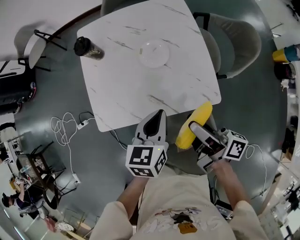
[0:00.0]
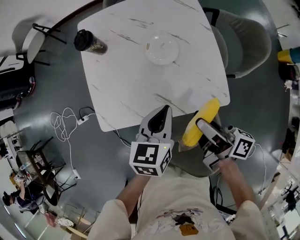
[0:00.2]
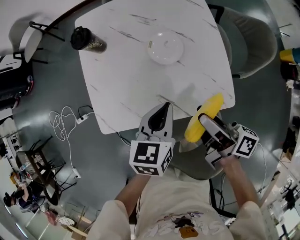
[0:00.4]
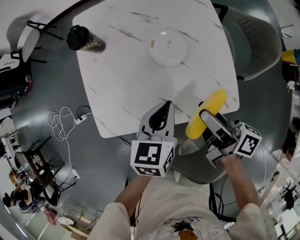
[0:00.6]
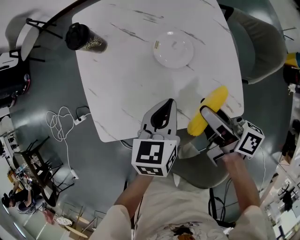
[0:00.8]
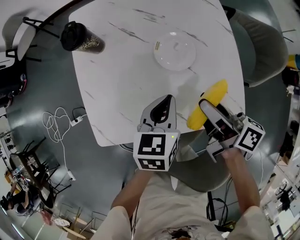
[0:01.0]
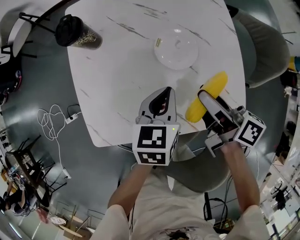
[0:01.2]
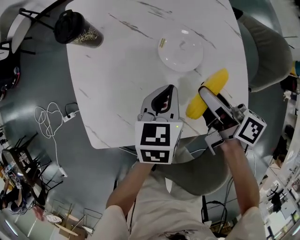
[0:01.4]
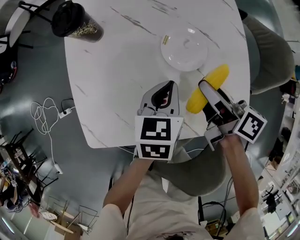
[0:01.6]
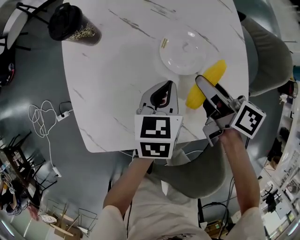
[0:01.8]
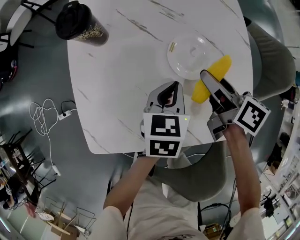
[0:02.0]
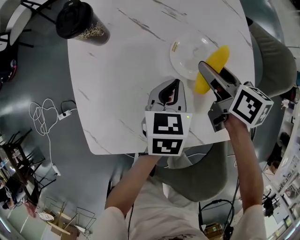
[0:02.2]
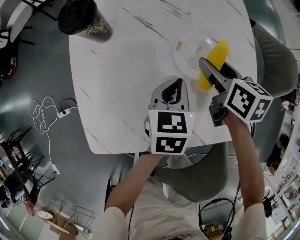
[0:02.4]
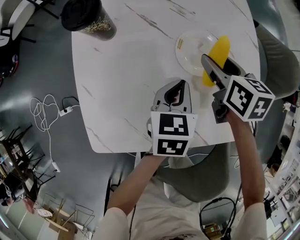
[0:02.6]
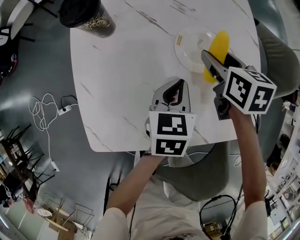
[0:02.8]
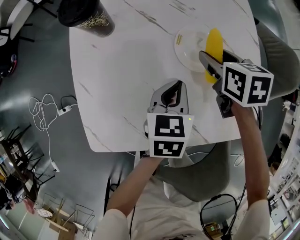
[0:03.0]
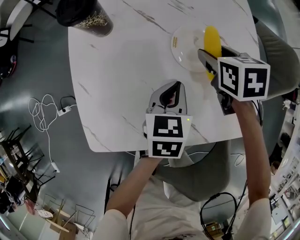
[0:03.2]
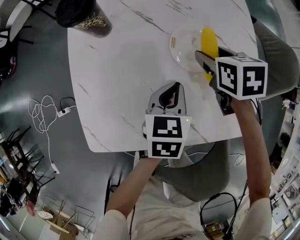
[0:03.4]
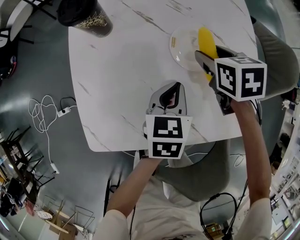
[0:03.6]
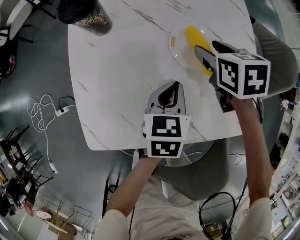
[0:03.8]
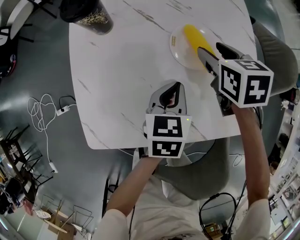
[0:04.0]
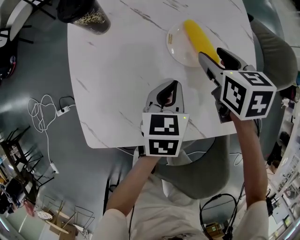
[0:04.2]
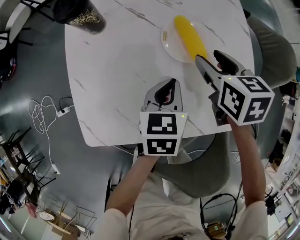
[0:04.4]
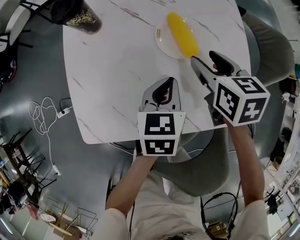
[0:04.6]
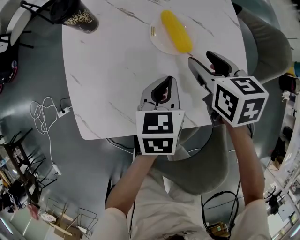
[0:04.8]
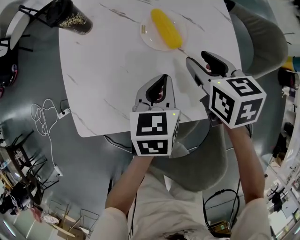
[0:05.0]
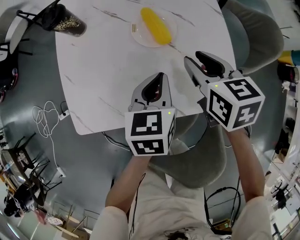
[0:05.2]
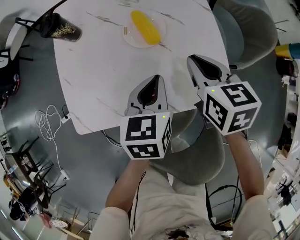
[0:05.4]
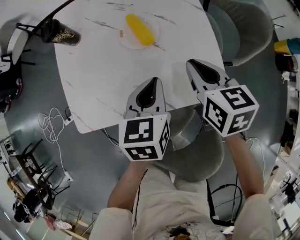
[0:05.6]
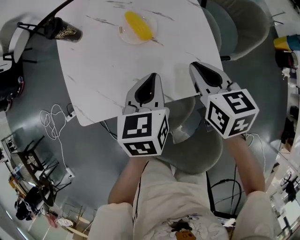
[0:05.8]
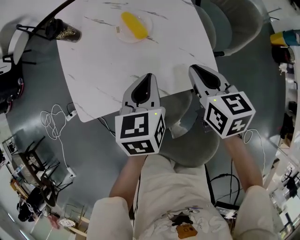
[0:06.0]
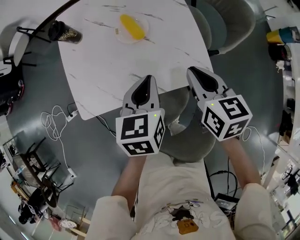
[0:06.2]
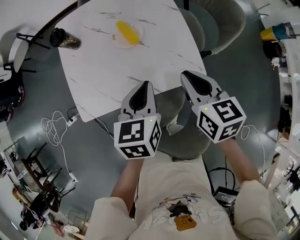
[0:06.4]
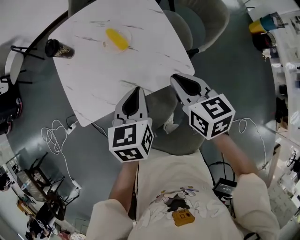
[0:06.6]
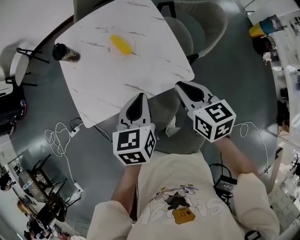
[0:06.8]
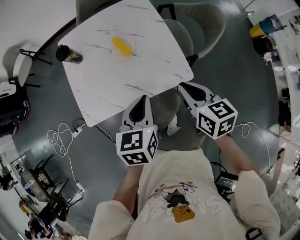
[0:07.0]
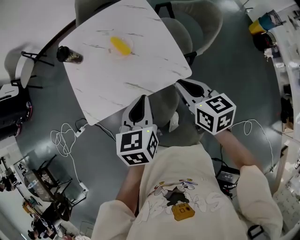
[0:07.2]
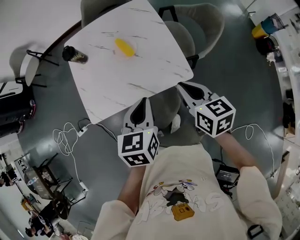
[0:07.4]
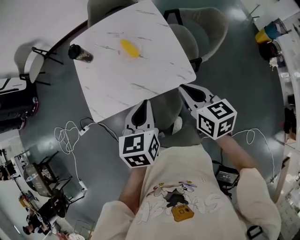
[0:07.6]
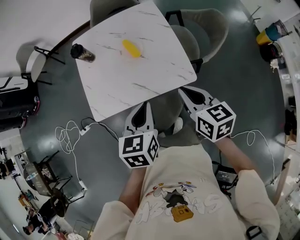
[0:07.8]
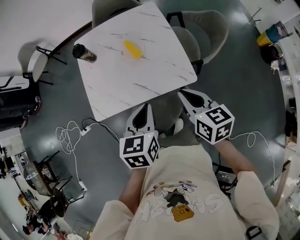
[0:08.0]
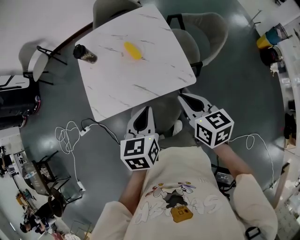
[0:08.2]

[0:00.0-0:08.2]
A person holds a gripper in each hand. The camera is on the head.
0.0 to 1.6 s: The right gripper heads forward and downward, covering some 25 cm, and changes its angle by roughly 20 degrees. Meanwhile the left gripper is displaced downward and forward by some 25 cm.
1.6 to 3.2 s: The right gripper shifts approximately 10 cm forward and downward, and angles its fingers downward, by approximately 40 degrees.
3.2 to 5.0 s: The right gripper heads backward and upward, covering approximately 10 cm; the left gripper shifts by about 5 cm.
5.0 to 6.6 s: The right gripper moves backward, upward and to the right, about 25 cm, and closes up. Meanwhile the left gripper goes approximately 20 cm upward and backward.
6.6 to 8.2 s: The two grippers go roughly 10 cm backward and upward.

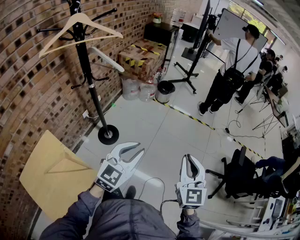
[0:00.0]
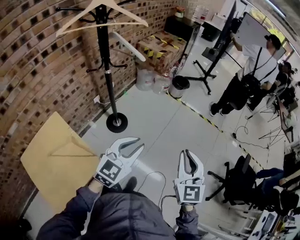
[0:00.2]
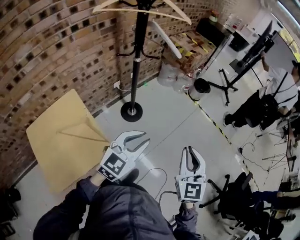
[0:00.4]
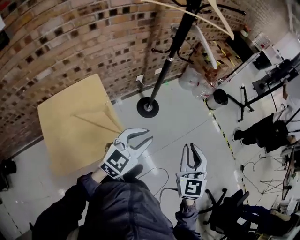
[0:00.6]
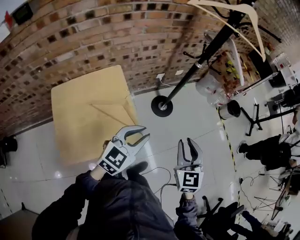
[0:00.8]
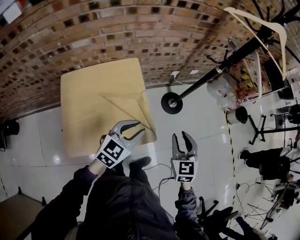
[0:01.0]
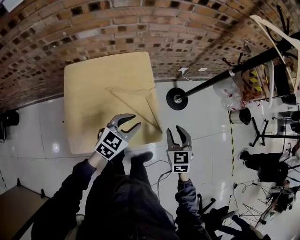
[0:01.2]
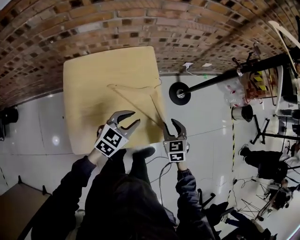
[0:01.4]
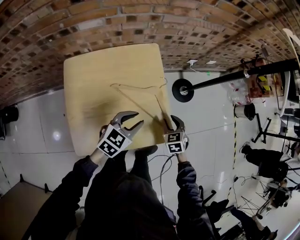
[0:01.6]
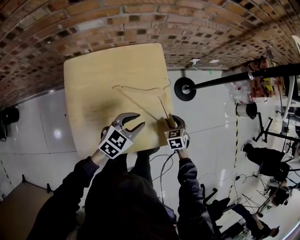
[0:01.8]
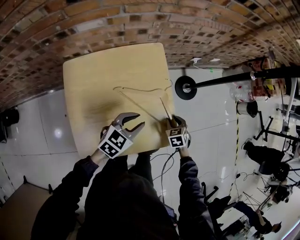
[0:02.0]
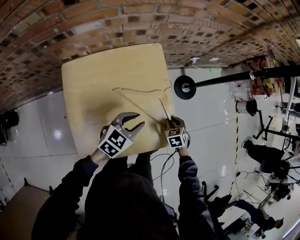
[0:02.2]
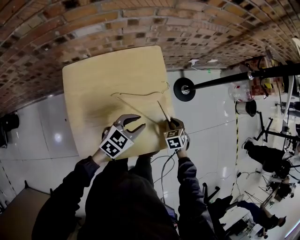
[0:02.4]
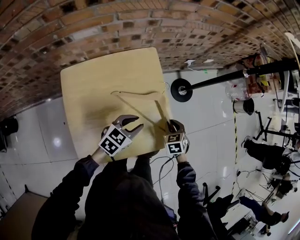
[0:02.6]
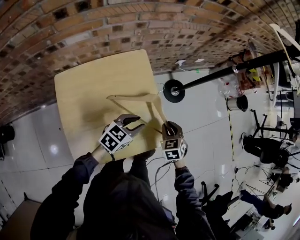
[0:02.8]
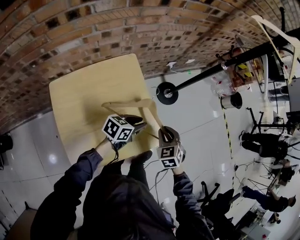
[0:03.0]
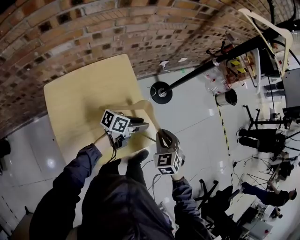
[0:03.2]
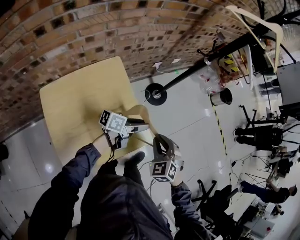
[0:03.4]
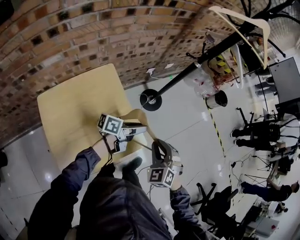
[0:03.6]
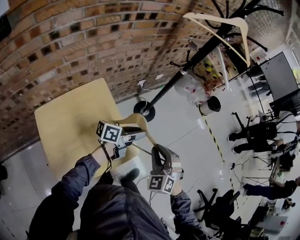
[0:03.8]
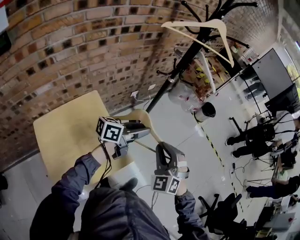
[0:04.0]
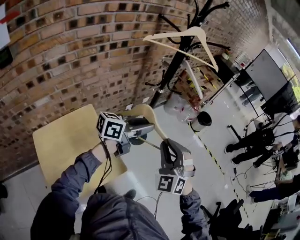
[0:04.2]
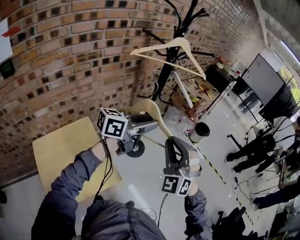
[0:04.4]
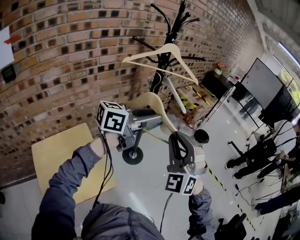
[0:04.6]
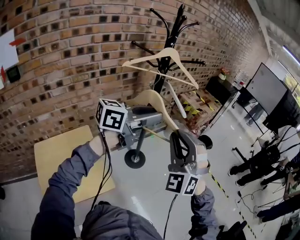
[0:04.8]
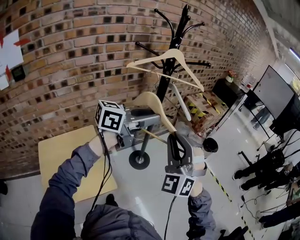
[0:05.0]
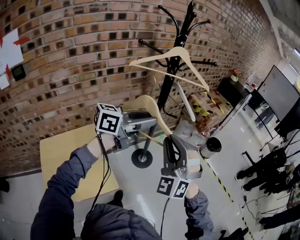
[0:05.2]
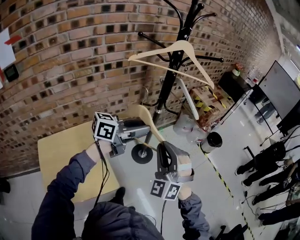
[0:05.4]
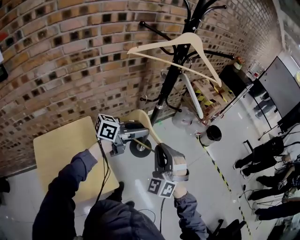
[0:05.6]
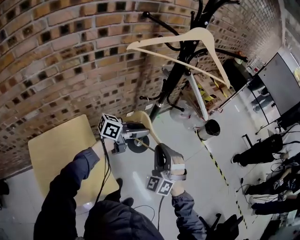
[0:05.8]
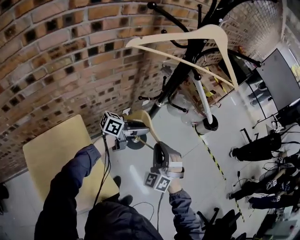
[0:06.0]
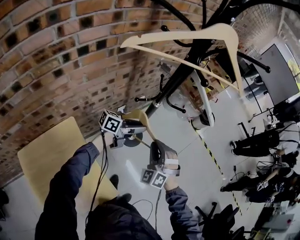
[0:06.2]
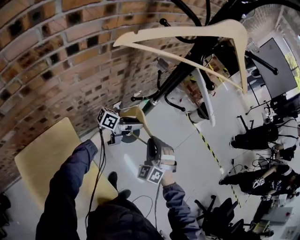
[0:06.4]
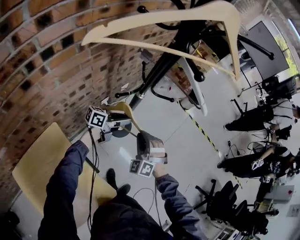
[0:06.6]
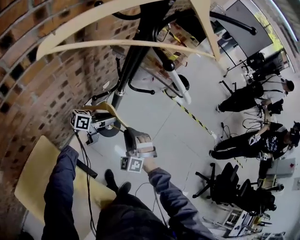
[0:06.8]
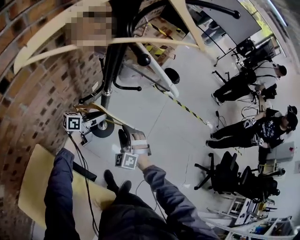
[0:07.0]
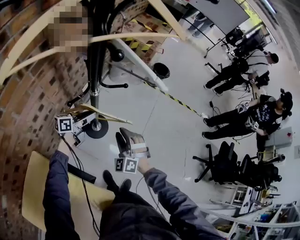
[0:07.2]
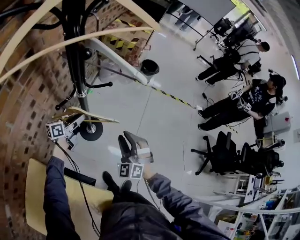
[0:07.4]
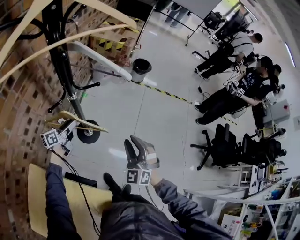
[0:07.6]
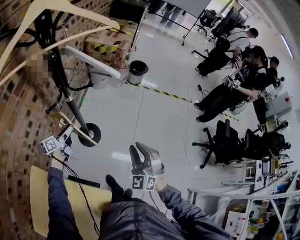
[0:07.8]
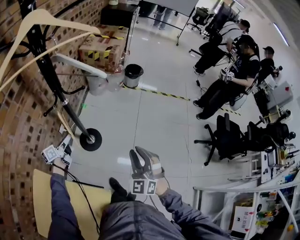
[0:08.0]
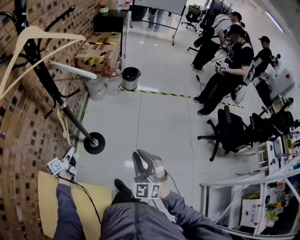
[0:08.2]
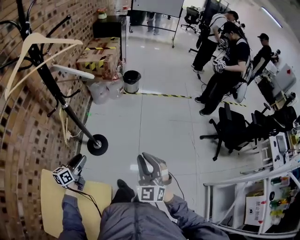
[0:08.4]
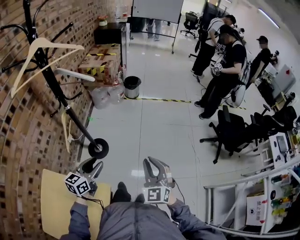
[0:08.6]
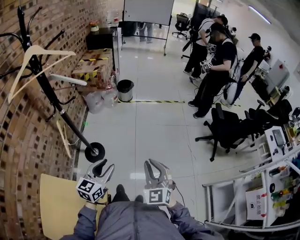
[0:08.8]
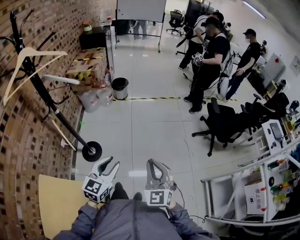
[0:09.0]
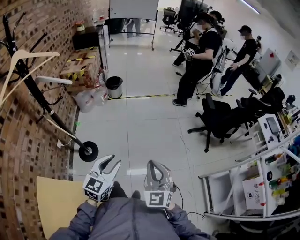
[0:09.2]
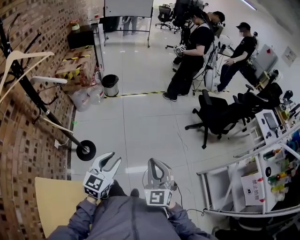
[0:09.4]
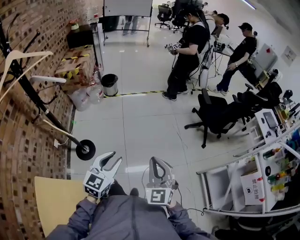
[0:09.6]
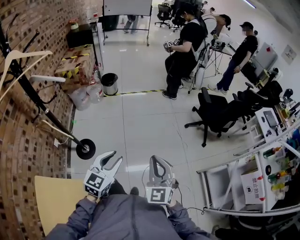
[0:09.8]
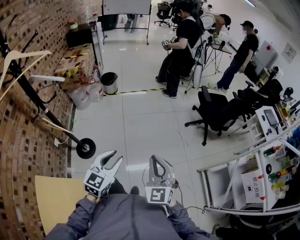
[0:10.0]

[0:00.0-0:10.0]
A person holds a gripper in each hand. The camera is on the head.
0.0 to 1.4 s: Both grippers are carried roughly 50 cm. The left gripper changes its angle by roughly 50 degrees; the right gripper tilts its fingers about 30 degrees downward, and opens.
1.4 to 2.8 s: The left gripper shifts by some 5 cm. The right gripper moves about 15 cm downward and comes back.
2.8 to 4.2 s: The right gripper goes roughly 40 cm upward and to the right, and tilts its fingers approximately 40 degrees upward, while the left gripper travels upward, forward and to the right by some 40 cm, and angles its fingers upward, by approximately 30 degrees.
4.2 to 5.8 s: The grippers both shift forward and downward by about 20 cm.
5.8 to 7.2 s: The left gripper moves downward, forward and to the left, about 25 cm. Meanwhile the right gripper is displaced downward and forward by approximately 20 cm, and rotates about 30 degrees.
7.2 to 8.6 s: Both grippers travel together to the right, backward and upward, roughly 40 cm. The right gripper swivels some 40 degrees, and closes up; the left gripper rotates roughly 40 degrees, and opens its fingers.
8.6 to 10.0 s: Both grippers move to the right, roughly 20 cm. The left gripper changes its angle by approximately 30 degrees.

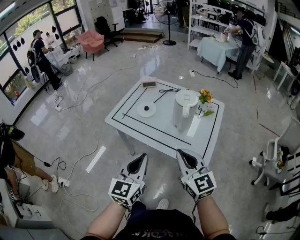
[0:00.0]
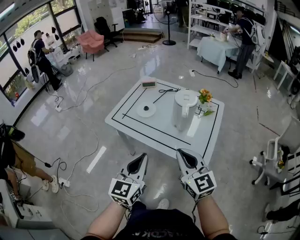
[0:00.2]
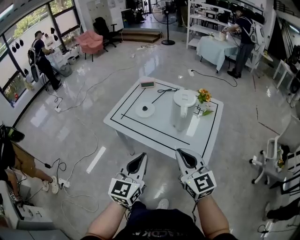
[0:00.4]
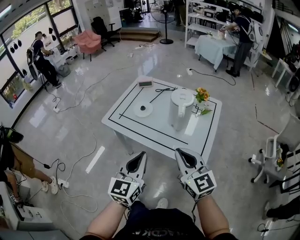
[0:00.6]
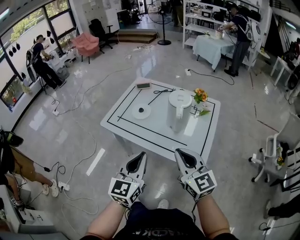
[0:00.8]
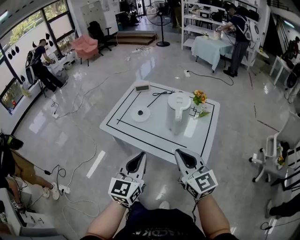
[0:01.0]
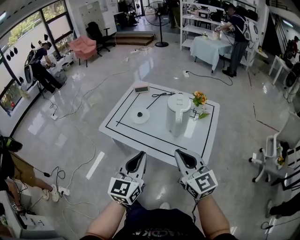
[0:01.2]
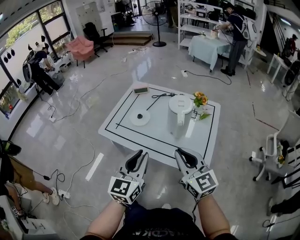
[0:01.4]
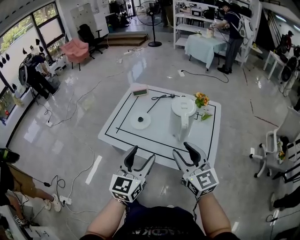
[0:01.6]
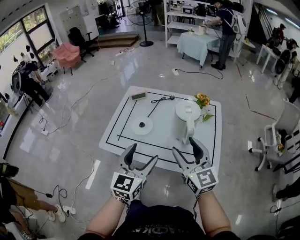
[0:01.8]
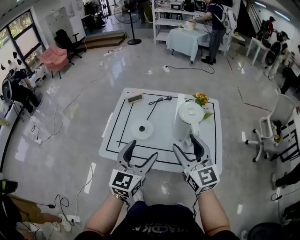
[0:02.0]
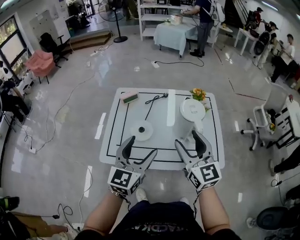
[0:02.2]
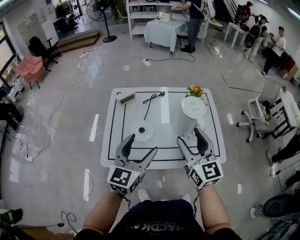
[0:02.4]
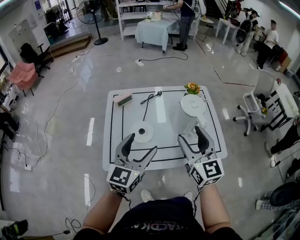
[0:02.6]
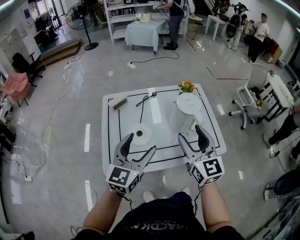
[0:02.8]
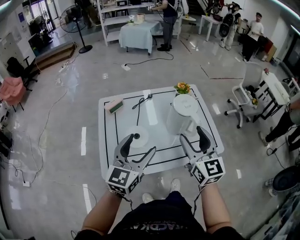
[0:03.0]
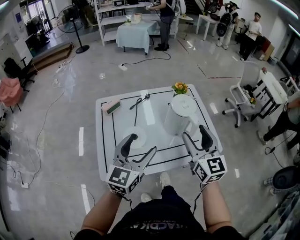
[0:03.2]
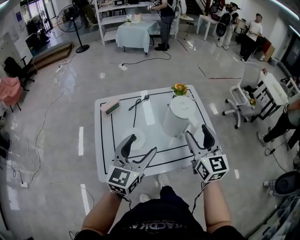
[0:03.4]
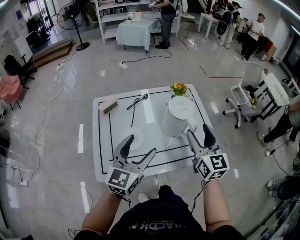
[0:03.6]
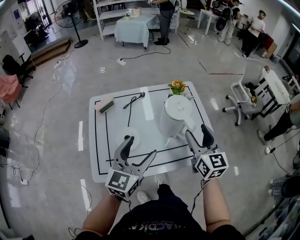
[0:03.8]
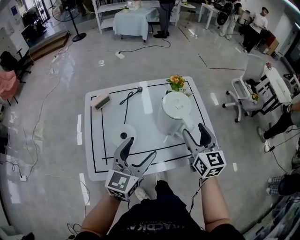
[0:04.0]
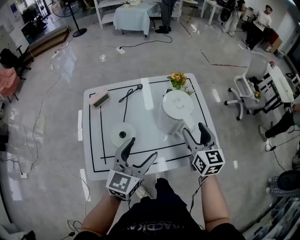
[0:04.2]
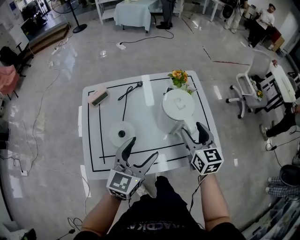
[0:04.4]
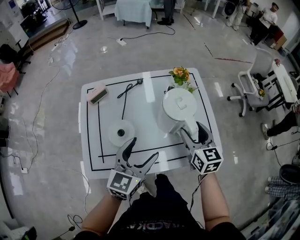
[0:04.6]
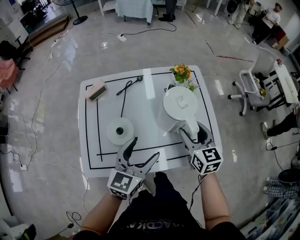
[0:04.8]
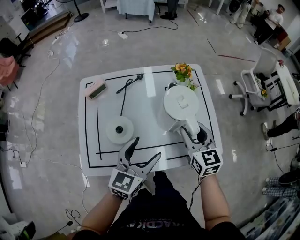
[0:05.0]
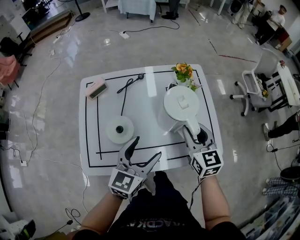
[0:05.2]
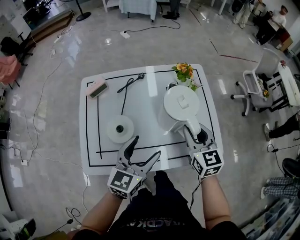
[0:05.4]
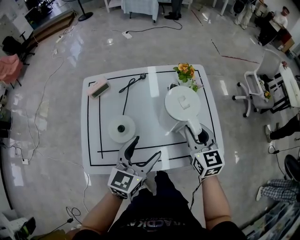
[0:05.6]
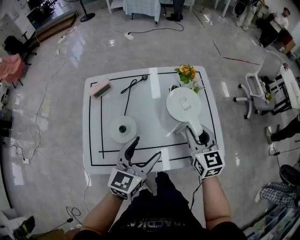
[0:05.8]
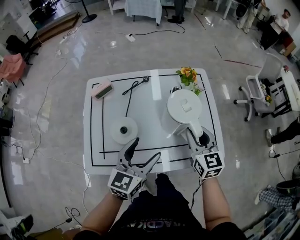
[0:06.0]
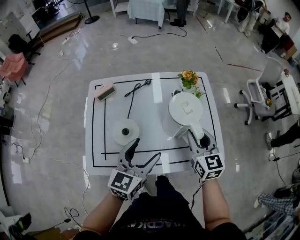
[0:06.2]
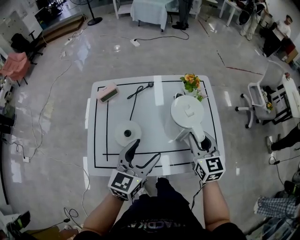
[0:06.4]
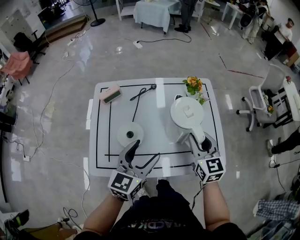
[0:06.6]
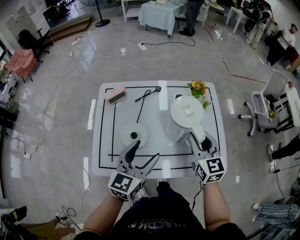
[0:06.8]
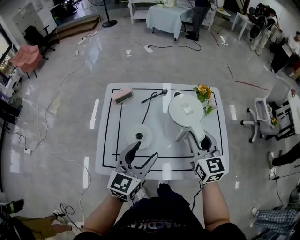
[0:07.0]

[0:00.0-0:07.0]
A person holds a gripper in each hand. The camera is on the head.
0.0 to 1.4 s: The right gripper changes place by some 5 cm. The left gripper heads forward, covering about 5 cm.
1.4 to 2.8 s: The right gripper moves roughly 20 cm, changes its angle by some 40 degrees, and opens its fingers; the left gripper shifts by some 25 cm, turns by about 40 degrees, and opens up.
2.8 to 4.2 s: The left gripper moves to the right, downward and forward, about 10 cm. The right gripper goes some 15 cm forward, downward and to the right.
4.2 to 5.6 s: The right gripper closes.
5.6 to 7.0 s: The right gripper is displaced to the left and upward by some 10 cm. Meanwhile the left gripper moves to the left, roughly 10 cm.
